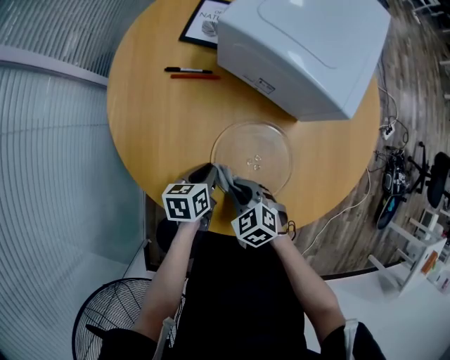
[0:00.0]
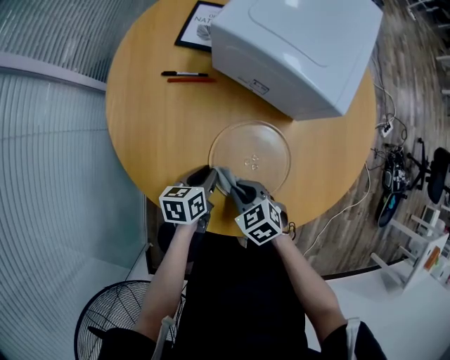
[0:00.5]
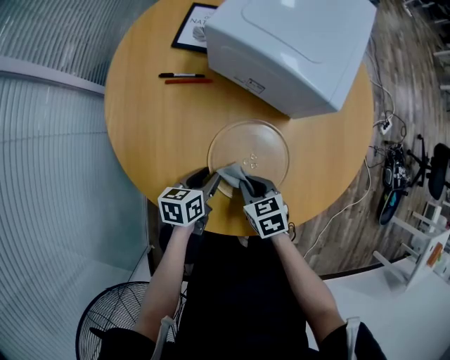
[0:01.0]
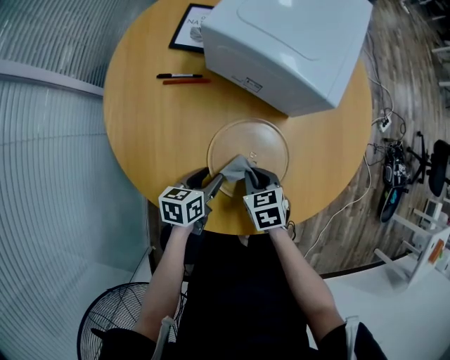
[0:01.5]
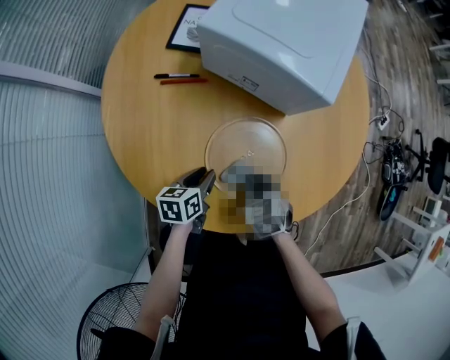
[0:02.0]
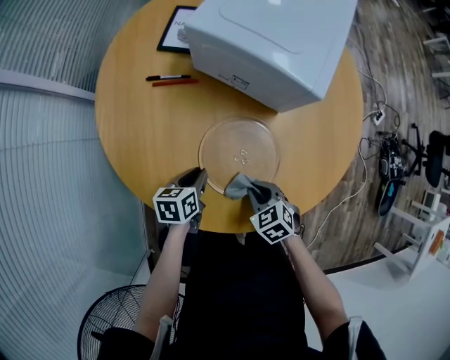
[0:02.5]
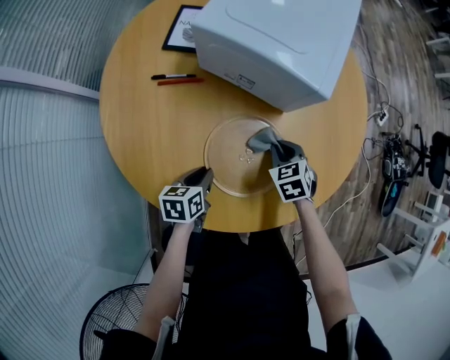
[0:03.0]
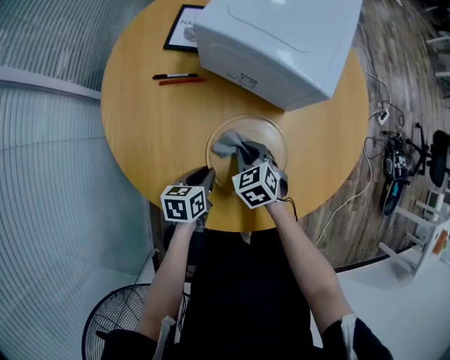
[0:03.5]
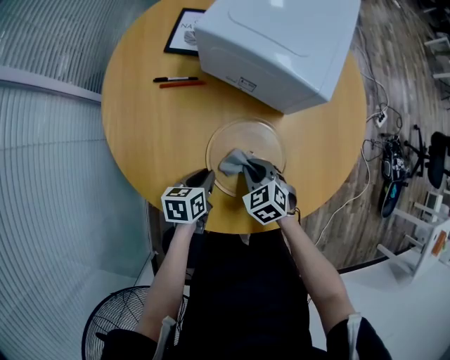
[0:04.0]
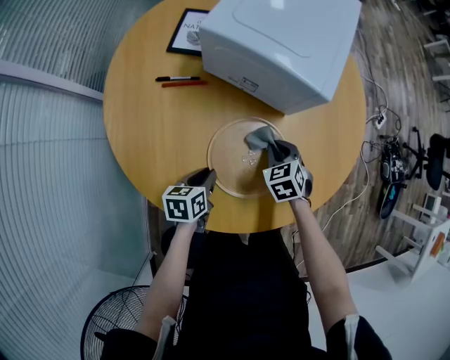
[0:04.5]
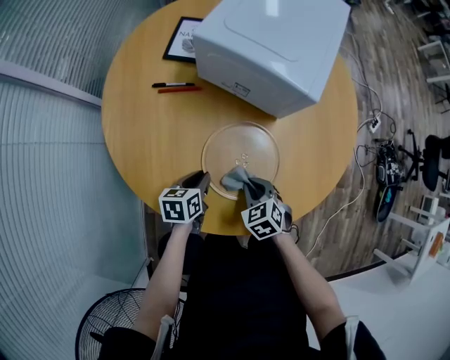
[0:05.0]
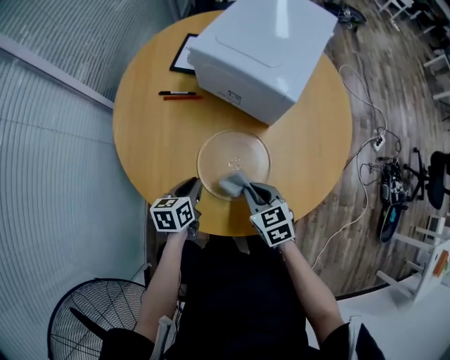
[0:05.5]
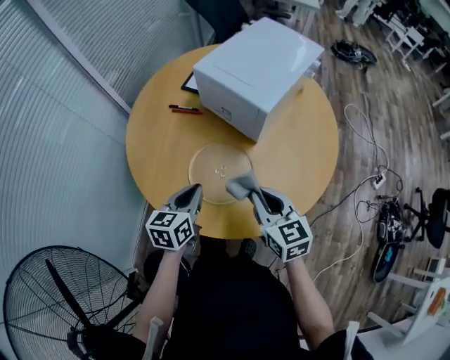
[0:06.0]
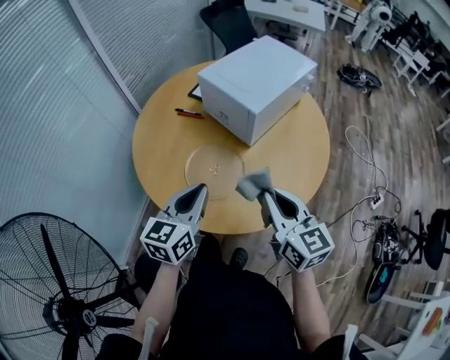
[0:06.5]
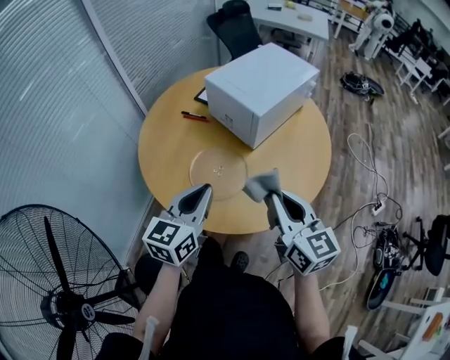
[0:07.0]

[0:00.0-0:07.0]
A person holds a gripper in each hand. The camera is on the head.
0:00.0 to 0:02.0: The right gripper travels to the right by roughly 5 cm, and changes its angle by approximately 20 degrees.
0:02.0 to 0:03.5: The right gripper shifts some 10 cm forward.
0:03.5 to 0:05.0: The right gripper swings forward and backward, some 10 cm each way, with 2 reversals.
0:05.0 to 0:07.0: The right gripper shifts approximately 40 cm upward and to the right, and tips its fingers upward by approximately 50 degrees; the left gripper heads upward, backward and to the right, covering some 40 cm, and tips its fingers upward by roughly 30 degrees.

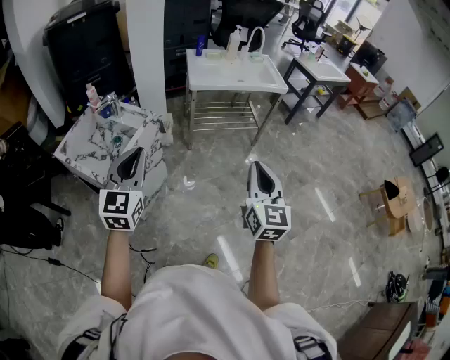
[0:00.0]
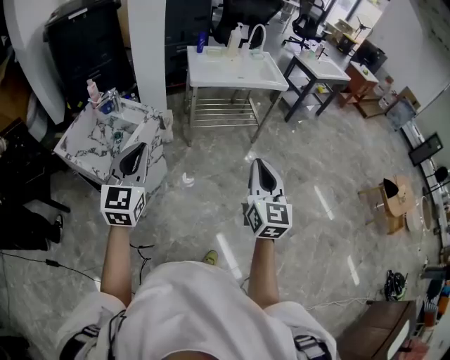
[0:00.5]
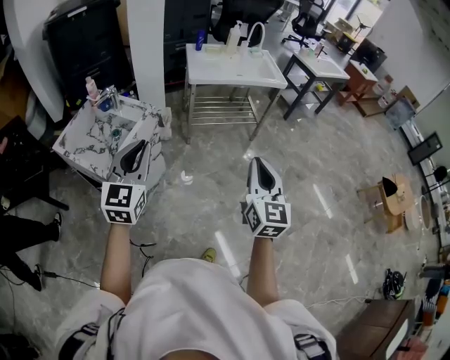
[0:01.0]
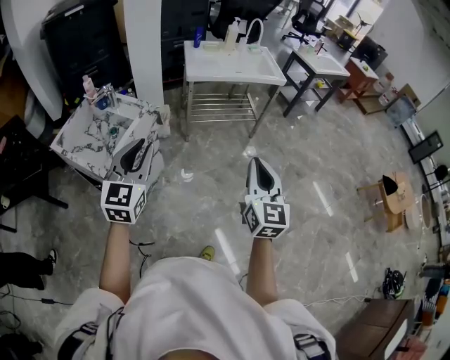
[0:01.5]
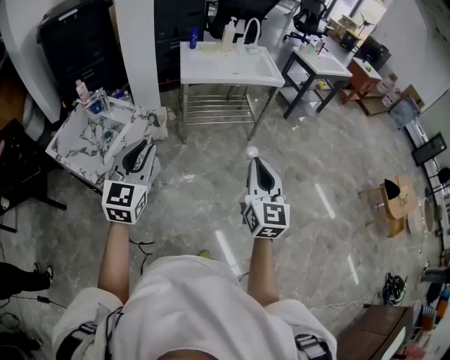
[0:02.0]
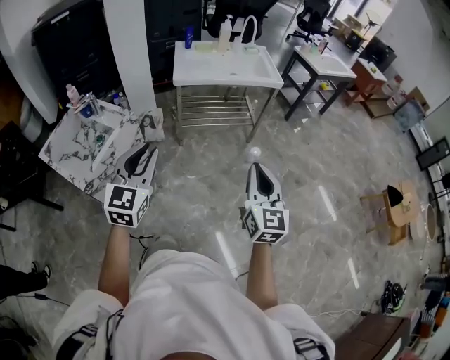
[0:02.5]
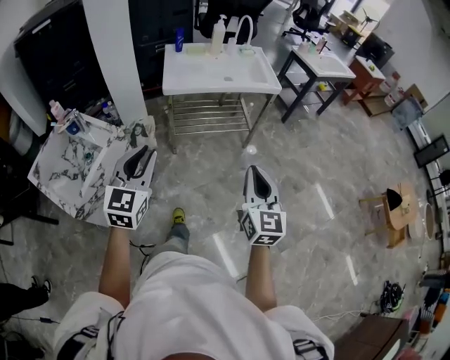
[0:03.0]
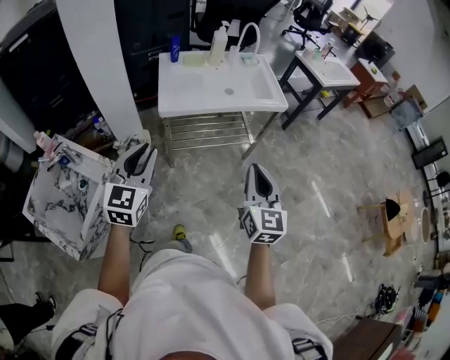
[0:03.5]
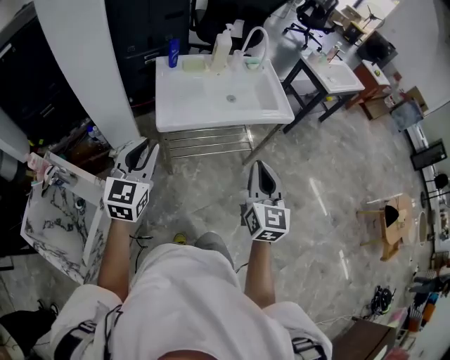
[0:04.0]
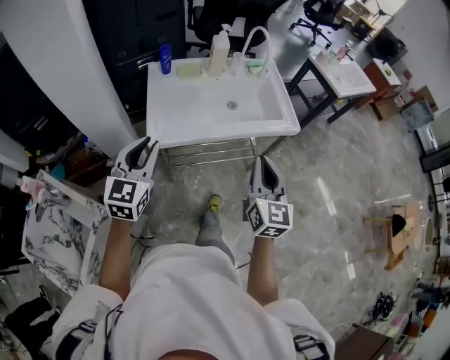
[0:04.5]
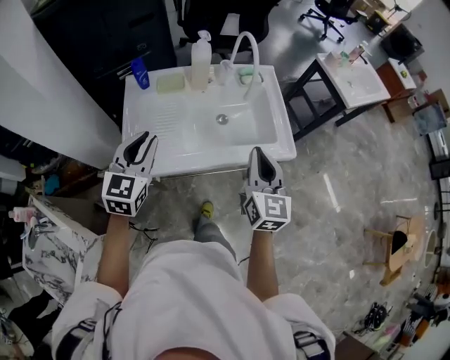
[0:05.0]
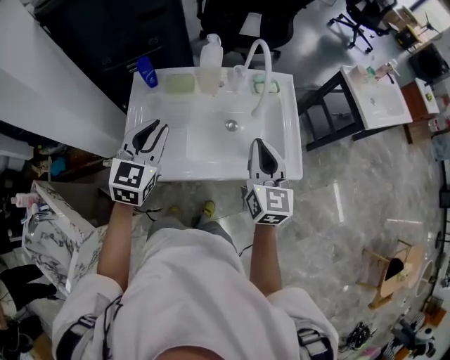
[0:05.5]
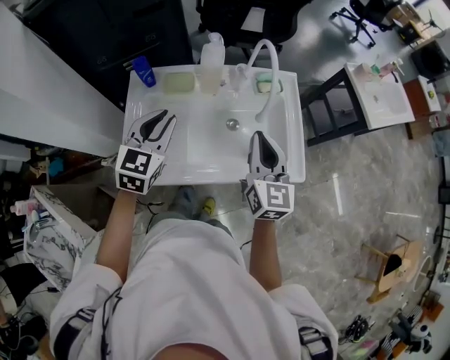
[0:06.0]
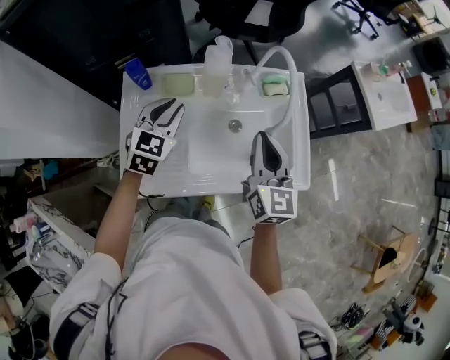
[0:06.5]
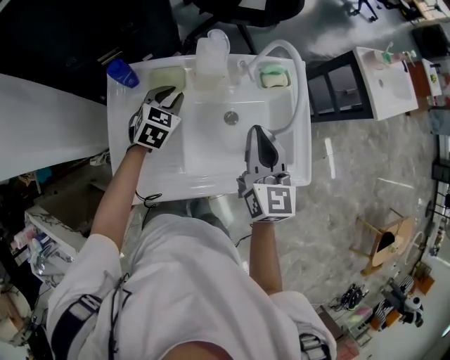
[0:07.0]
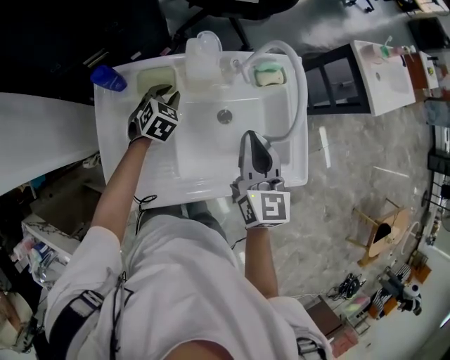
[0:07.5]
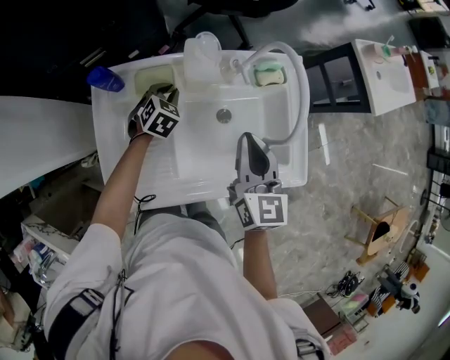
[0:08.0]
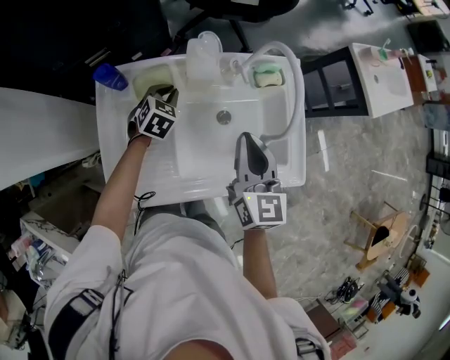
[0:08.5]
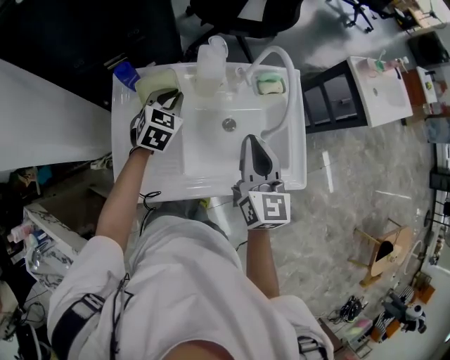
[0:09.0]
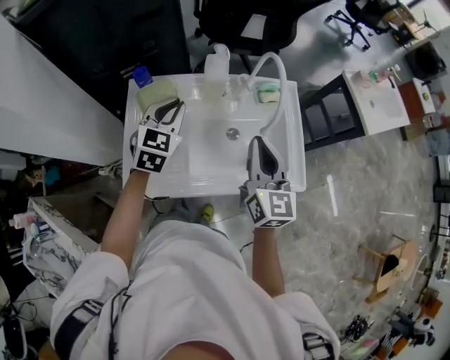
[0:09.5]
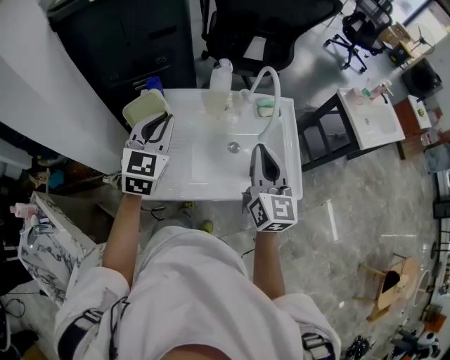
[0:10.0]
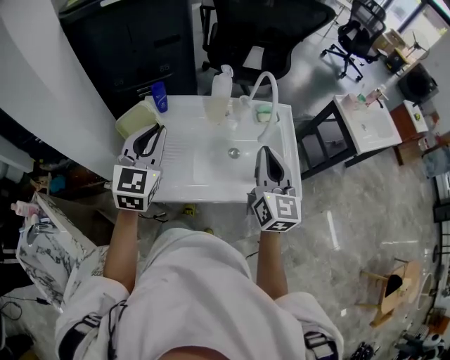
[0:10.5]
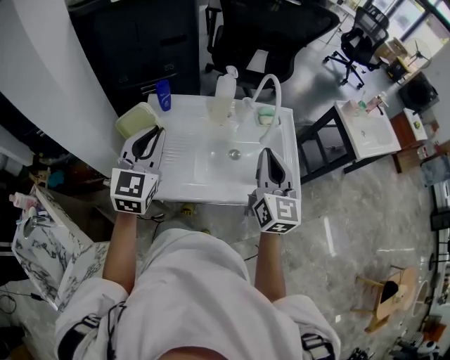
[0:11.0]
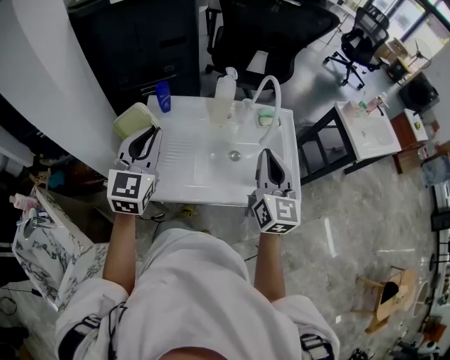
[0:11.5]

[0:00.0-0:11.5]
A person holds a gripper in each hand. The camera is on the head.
0:00.0 to 0:02.0: The grippers both shift to the right by about 10 cm.
0:02.0 to 0:04.0: The two grippers travel together, forward, about 50 cm.
0:04.0 to 0:06.0: The pair of grippers is taken forward, some 50 cm.
0:06.0 to 0:07.5: The left gripper is displaced downward and forward by about 30 cm, and swivels some 30 degrees. Meanwhile the right gripper goes approximately 10 cm forward and downward.
0:07.5 to 0:09.5: The left gripper moves upward and backward, approximately 25 cm, and rotates some 30 degrees. Meanwhile the right gripper shifts some 10 cm backward and upward.
0:09.5 to 0:11.5: The right gripper is displaced backward by roughly 5 cm. Meanwhile the left gripper heads backward, upward and to the left, covering approximately 20 cm, and rotates approximately 20 degrees.

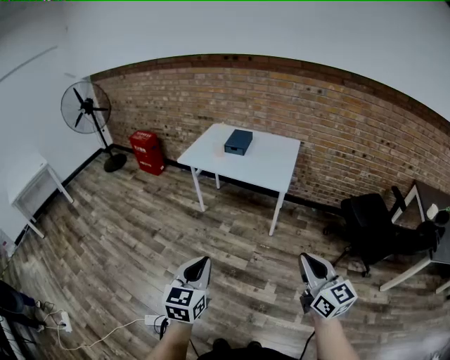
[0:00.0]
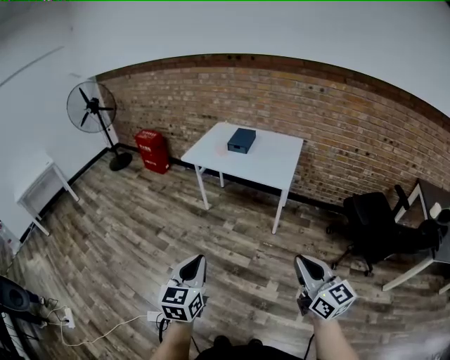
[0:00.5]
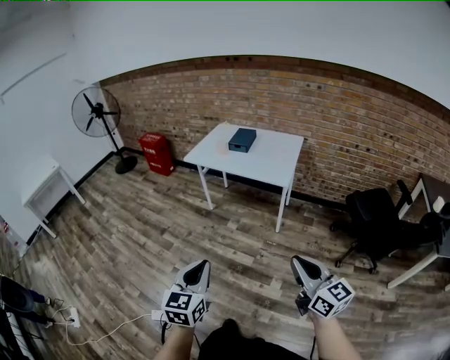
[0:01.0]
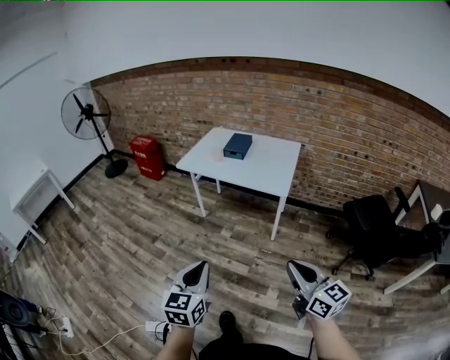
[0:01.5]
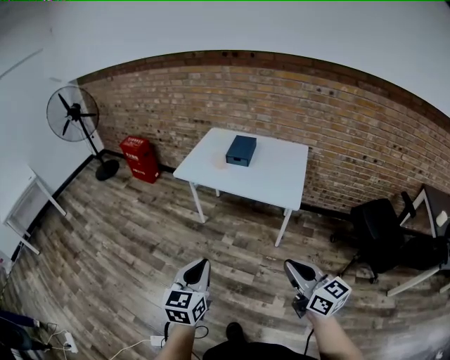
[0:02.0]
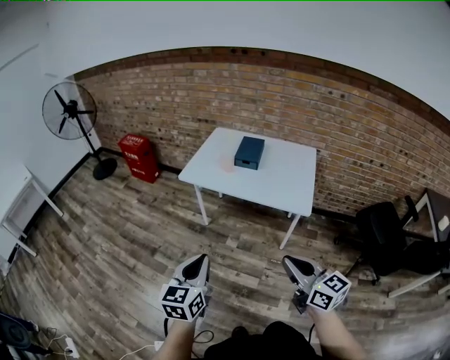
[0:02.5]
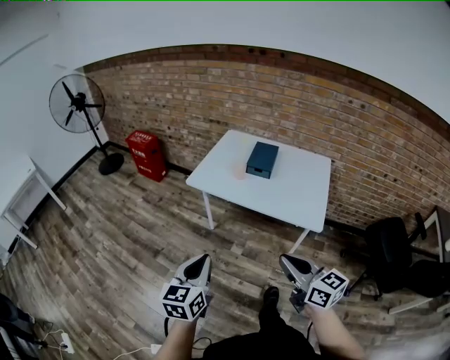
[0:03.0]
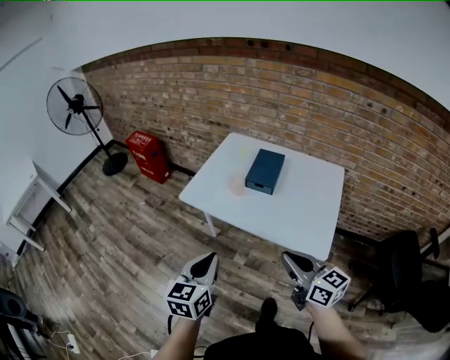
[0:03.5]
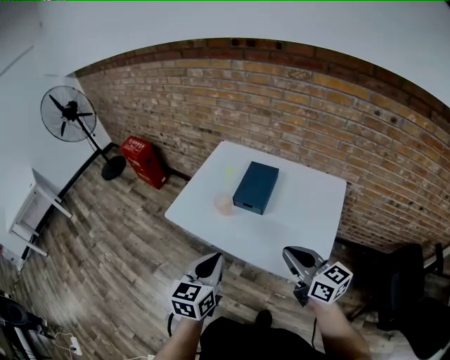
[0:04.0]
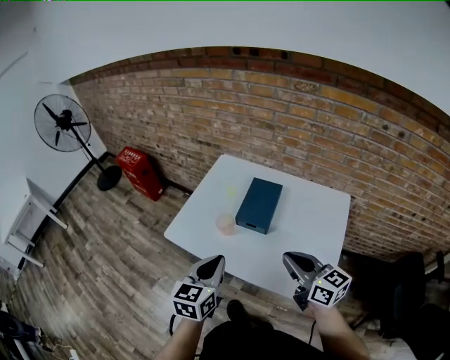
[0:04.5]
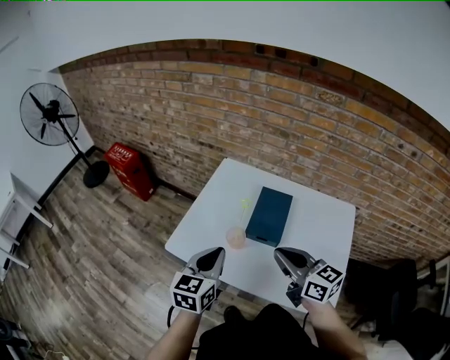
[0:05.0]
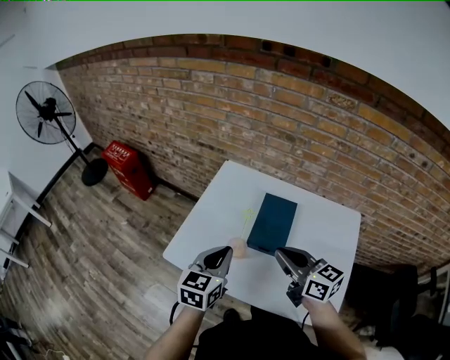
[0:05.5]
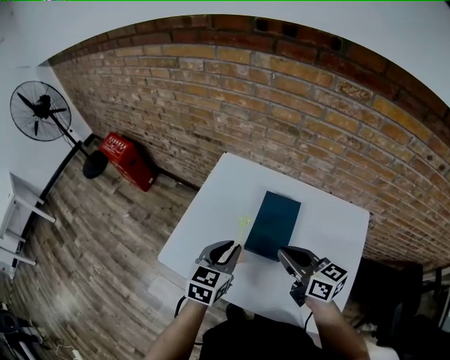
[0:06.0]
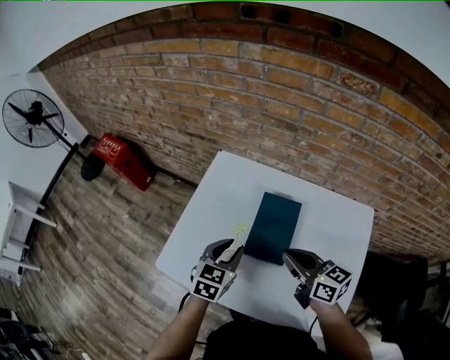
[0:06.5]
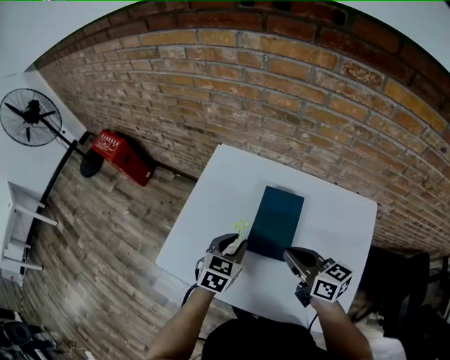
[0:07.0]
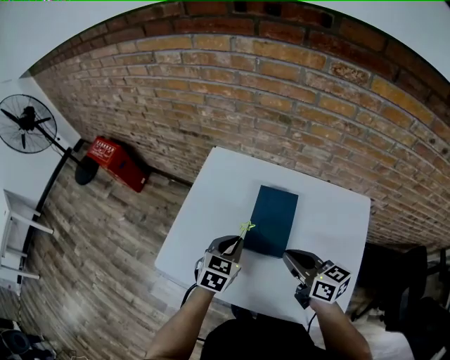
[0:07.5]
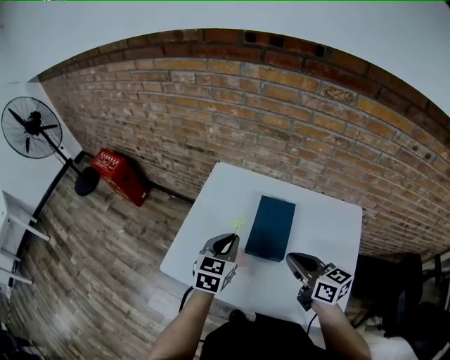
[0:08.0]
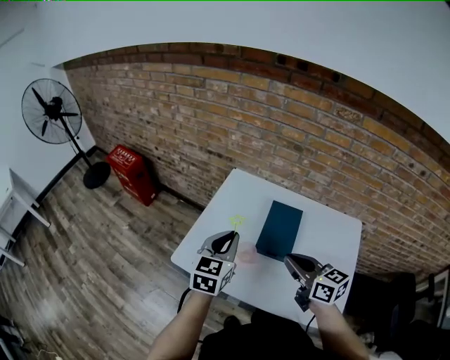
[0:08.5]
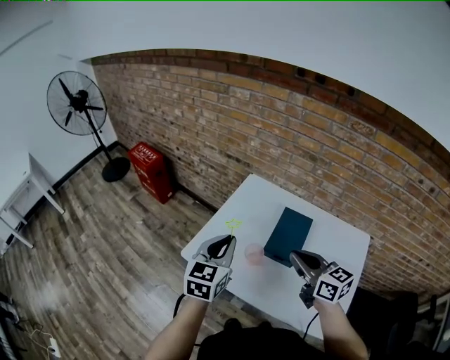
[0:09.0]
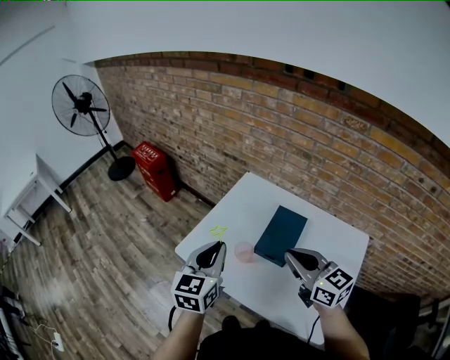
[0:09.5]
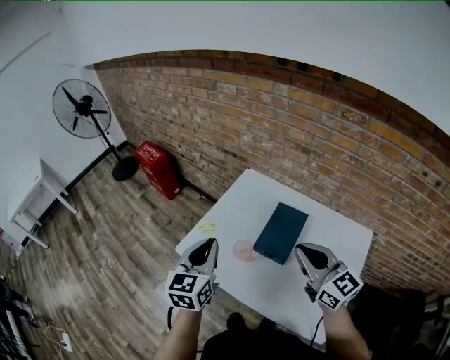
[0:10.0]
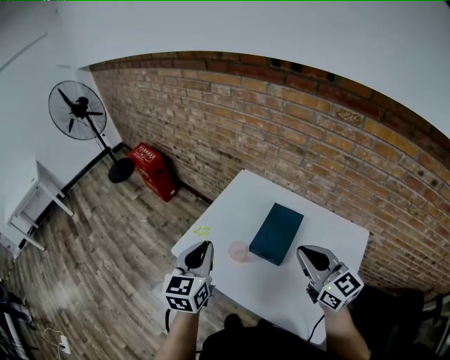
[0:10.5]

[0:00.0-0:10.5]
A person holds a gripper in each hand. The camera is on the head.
0:00.0 to 0:02.0: The right gripper heads forward and to the left, covering some 20 cm. Meanwhile the left gripper travels forward by approximately 20 cm.
0:02.0 to 0:04.0: The pair of grippers is taken forward, approximately 50 cm.
0:04.0 to 0:06.5: The two grippers go approximately 30 cm forward. The left gripper rotates approximately 20 degrees, and opens.
0:06.5 to 0:08.5: The right gripper heads backward, to the left and upward, covering roughly 10 cm; the left gripper is displaced upward and to the left by some 15 cm, and closes its fingers.
0:08.5 to 0:10.5: The right gripper goes about 10 cm upward and to the right, and changes its angle by roughly 20 degrees; the left gripper goes about 5 cm backward, and changes its angle by roughly 20 degrees.
